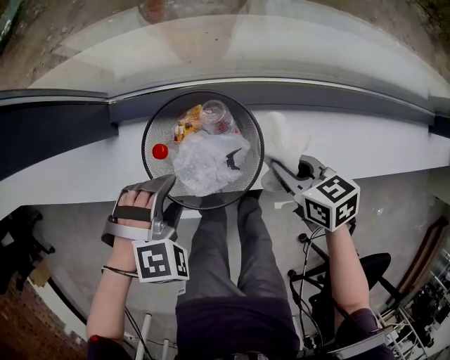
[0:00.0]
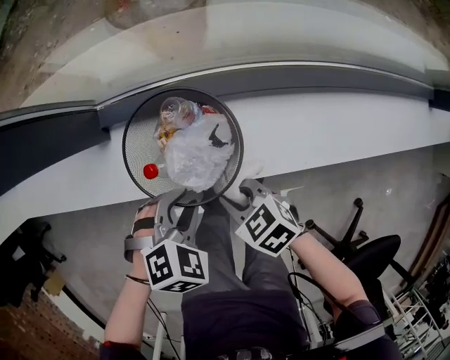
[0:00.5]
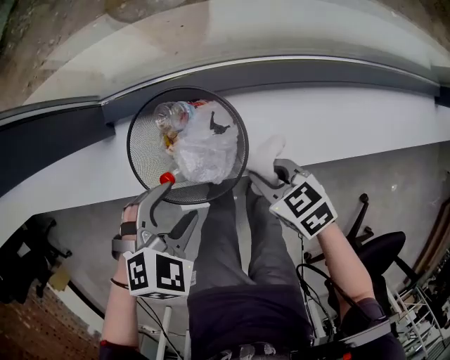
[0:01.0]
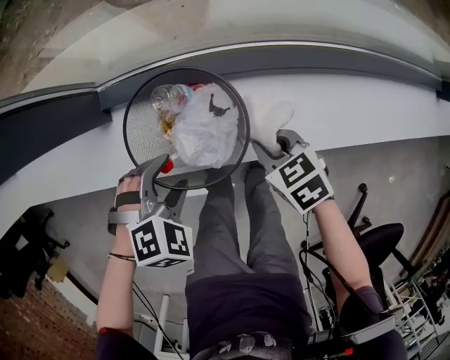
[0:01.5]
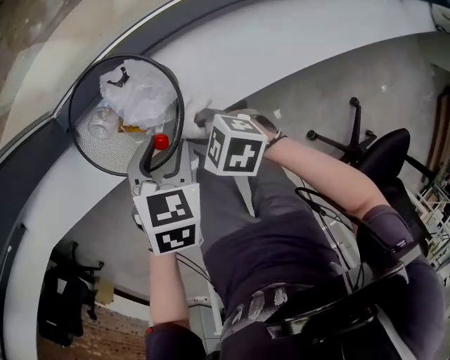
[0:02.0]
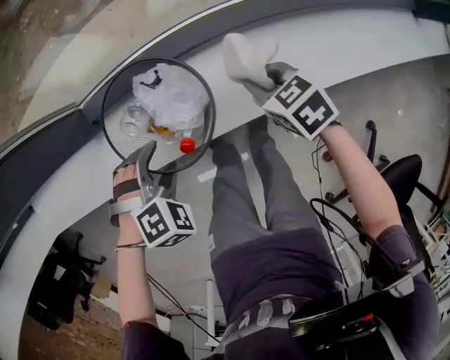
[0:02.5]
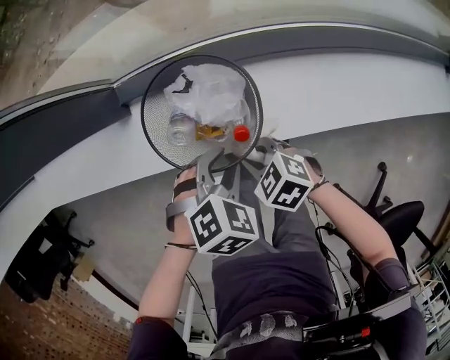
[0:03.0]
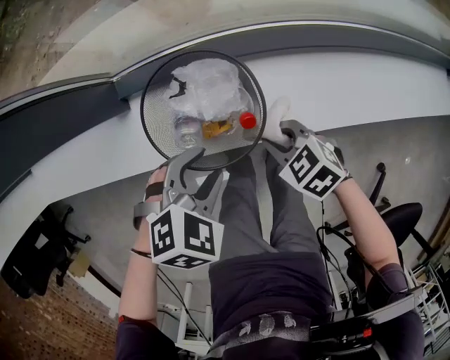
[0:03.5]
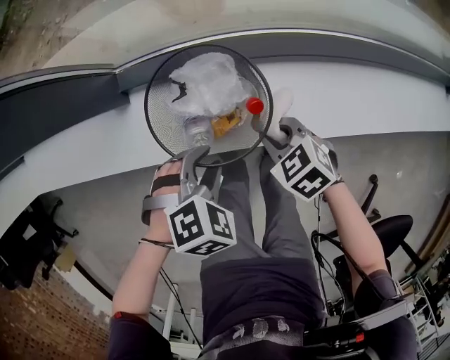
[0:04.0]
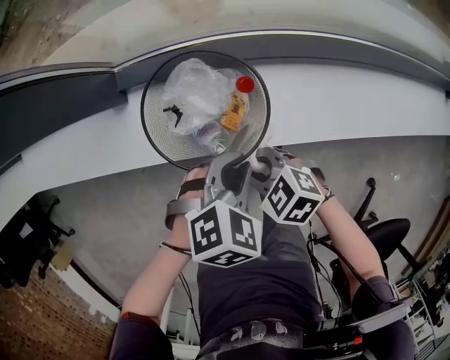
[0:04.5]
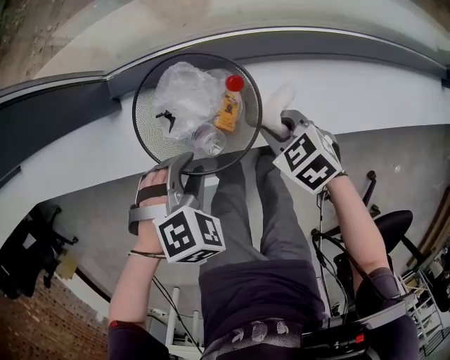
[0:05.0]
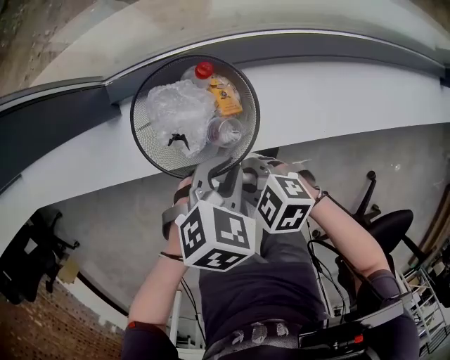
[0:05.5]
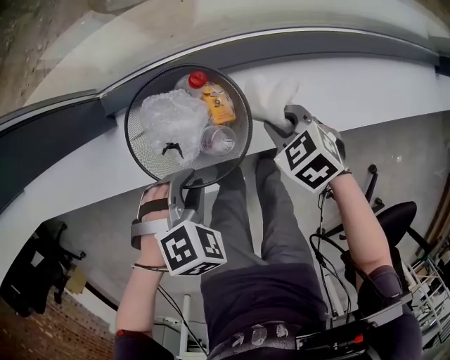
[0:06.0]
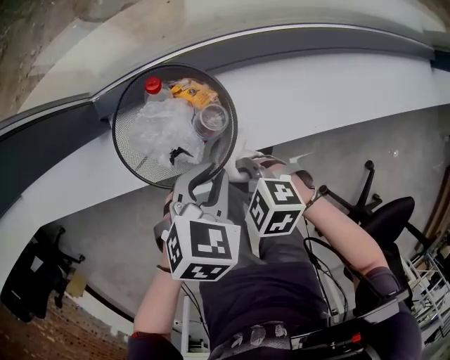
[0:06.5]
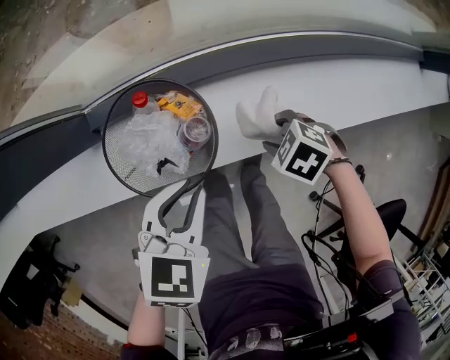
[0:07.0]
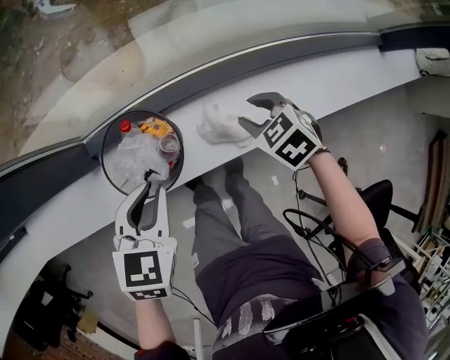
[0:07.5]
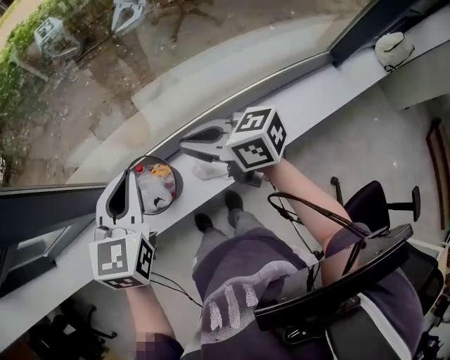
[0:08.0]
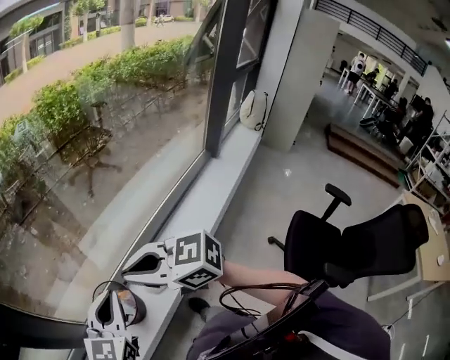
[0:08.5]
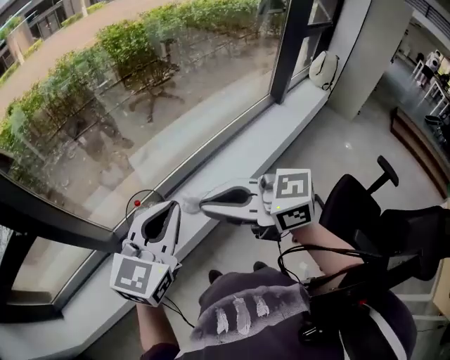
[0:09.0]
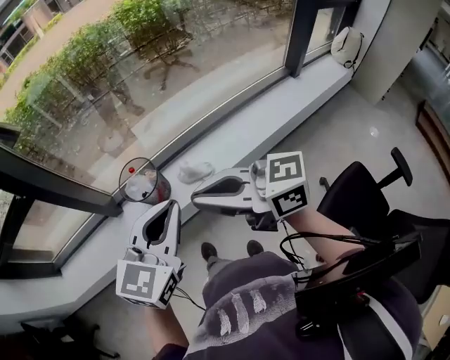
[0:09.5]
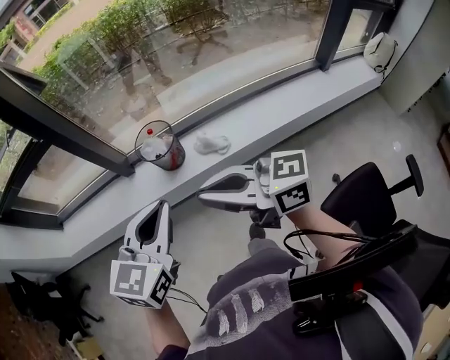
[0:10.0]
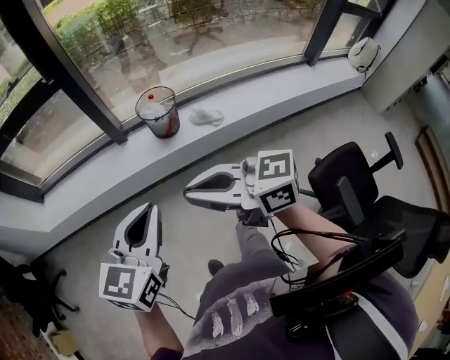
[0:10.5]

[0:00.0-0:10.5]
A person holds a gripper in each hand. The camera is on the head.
0:00.0 to 0:02.0: The right gripper changes place by approximately 15 cm, and rotates about 30 degrees. The left gripper shifts by roughly 5 cm, and twists approximately 50 degrees counterclockwise, seen from behind.
0:02.0 to 0:04.0: The left gripper turns by some 30 degrees.
0:04.0 to 0:06.5: The right gripper changes place by about 10 cm. The left gripper ends up some 5 cm from where it was, and swivels about 30 degrees.
0:06.5 to 0:08.5: Both grippers travel together upward, approximately 40 cm. The left gripper tilts its fingers some 50 degrees upward. The right gripper angles its fingers upward, by some 40 degrees, and opens, then closes again.
0:08.5 to 0:10.5: Both grippers are carried roughly 40 cm. The right gripper turns by about 30 degrees.

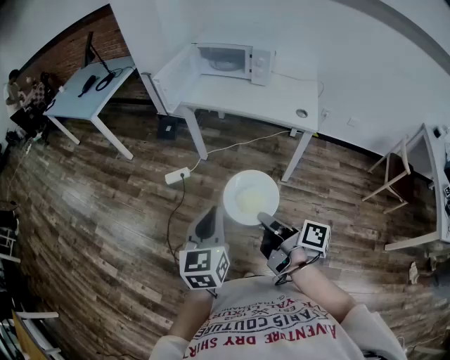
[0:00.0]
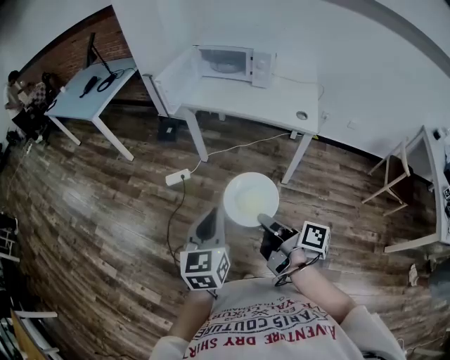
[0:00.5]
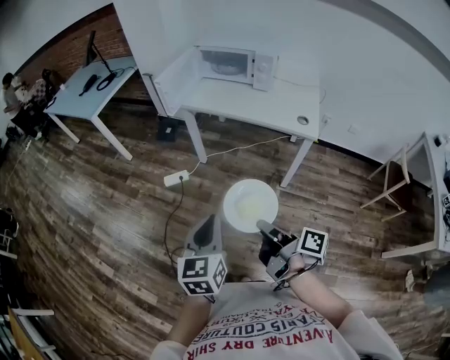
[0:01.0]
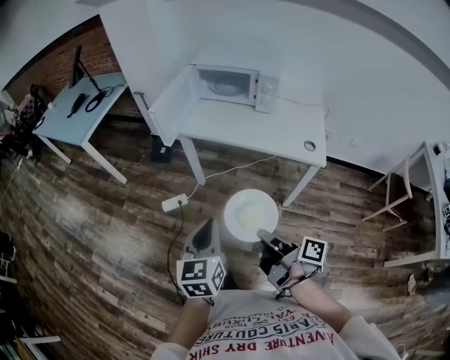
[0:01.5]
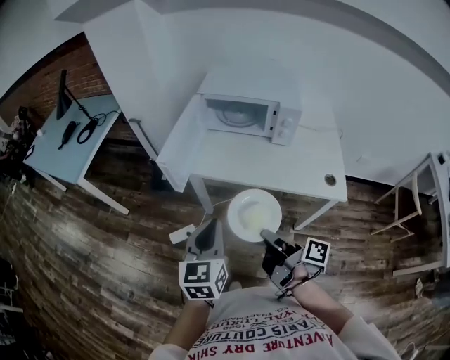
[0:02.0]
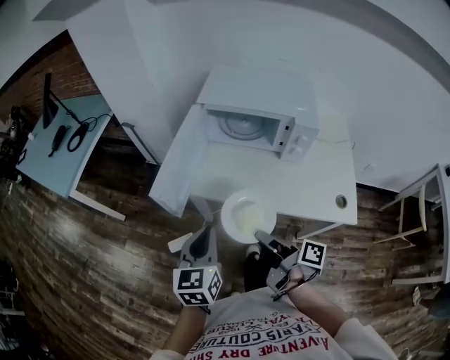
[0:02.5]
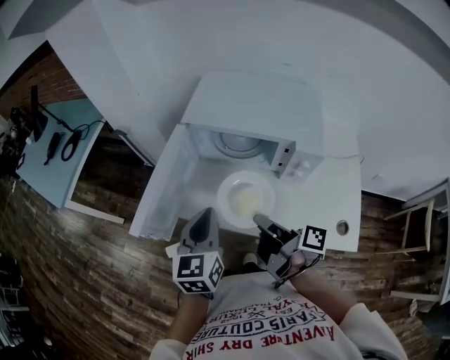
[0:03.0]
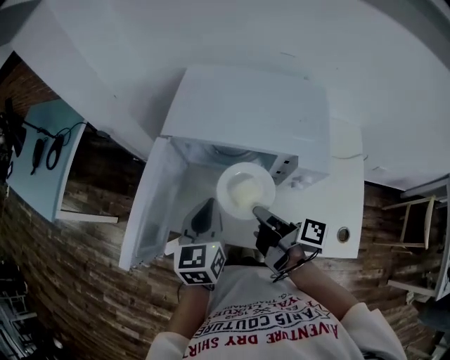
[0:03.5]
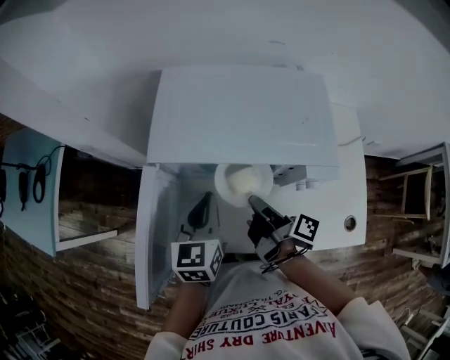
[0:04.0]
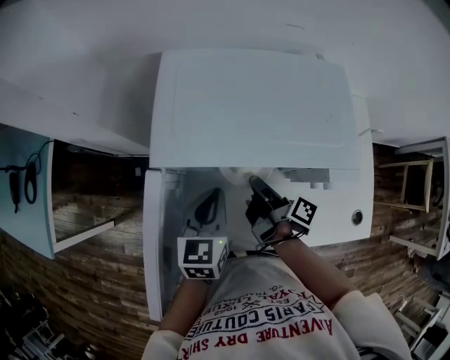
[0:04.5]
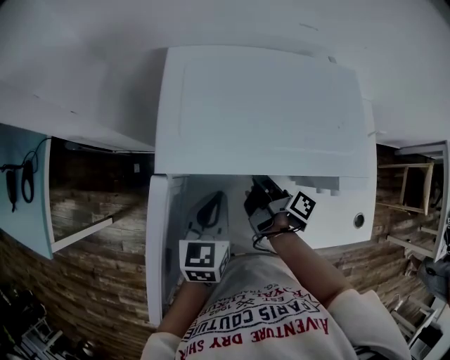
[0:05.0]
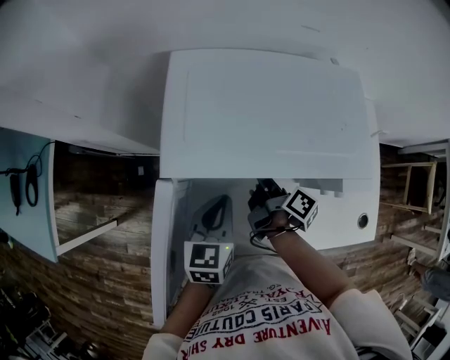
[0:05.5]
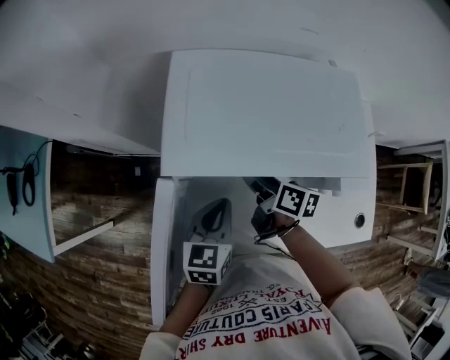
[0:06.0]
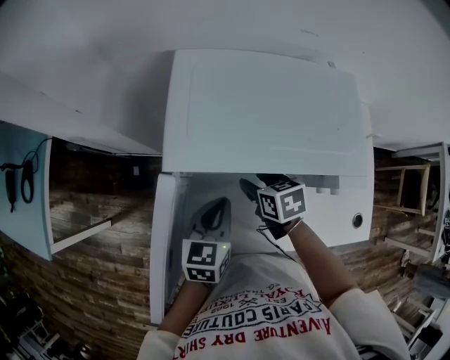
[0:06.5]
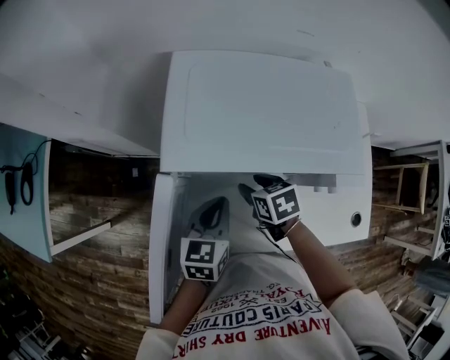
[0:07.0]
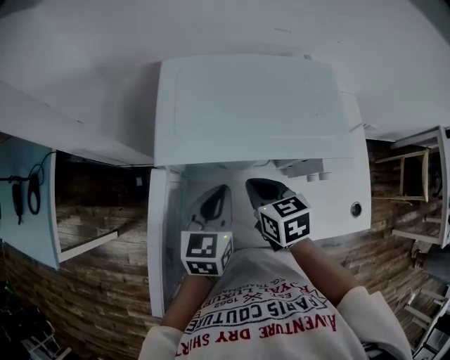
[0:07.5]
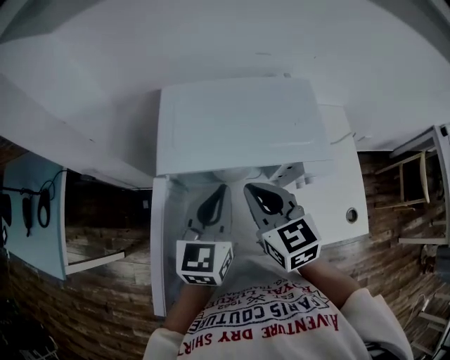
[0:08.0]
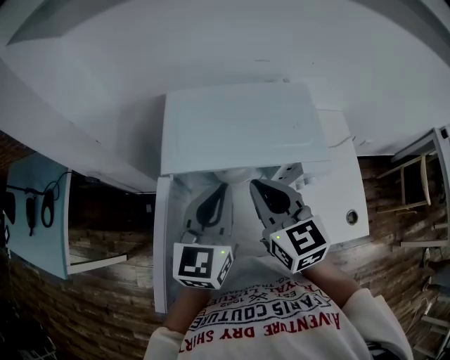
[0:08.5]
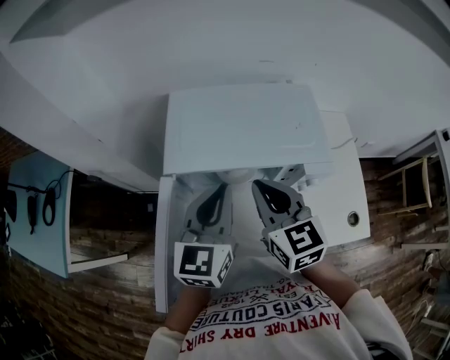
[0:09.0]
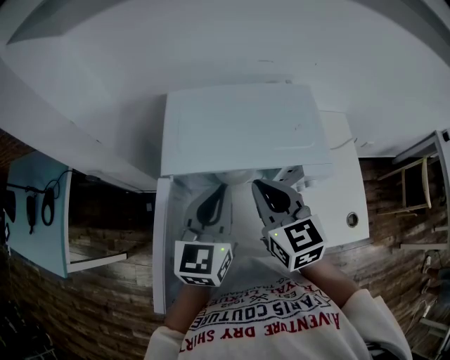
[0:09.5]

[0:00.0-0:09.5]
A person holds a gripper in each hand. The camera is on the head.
0:00.0 to 0:02.0: The left gripper shifts by approximately 40 cm.
0:02.0 to 0:04.0: The left gripper moves approximately 50 cm.
0:04.0 to 0:05.5: The left gripper is displaced downward by approximately 5 cm.
0:07.5 to 0:09.5: The left gripper heads upward, covering some 15 cm.

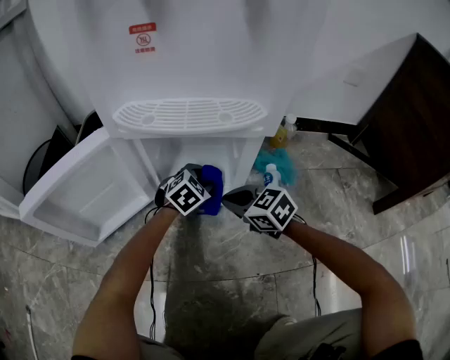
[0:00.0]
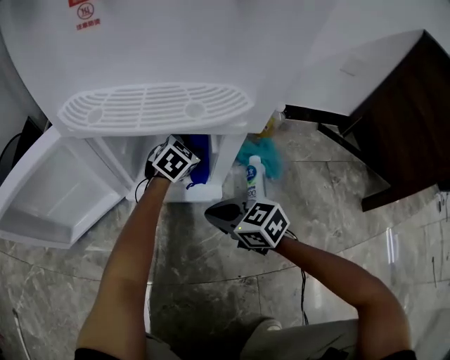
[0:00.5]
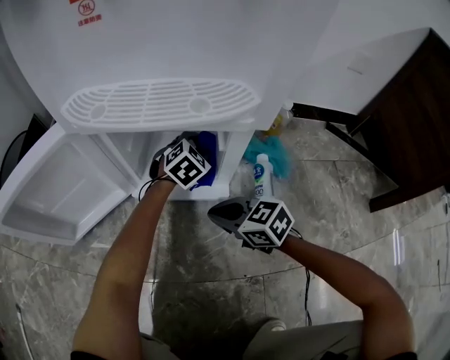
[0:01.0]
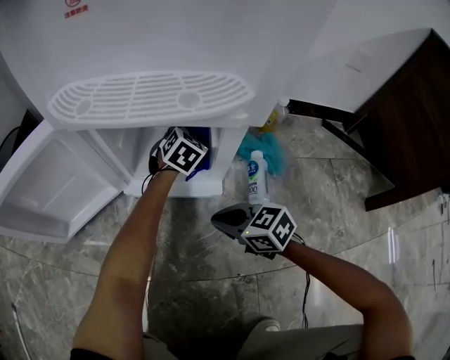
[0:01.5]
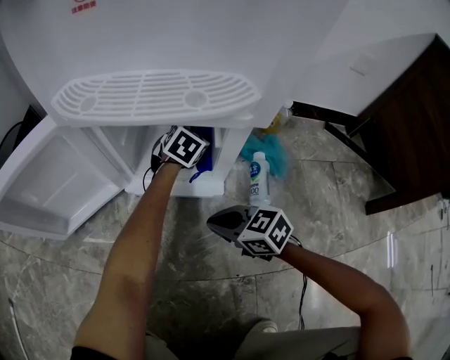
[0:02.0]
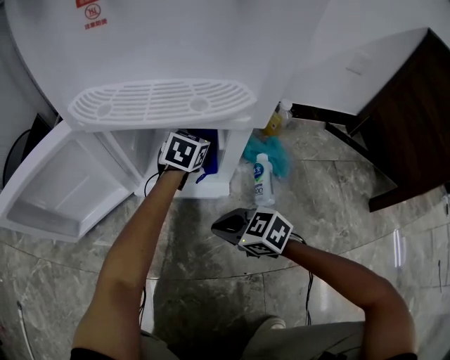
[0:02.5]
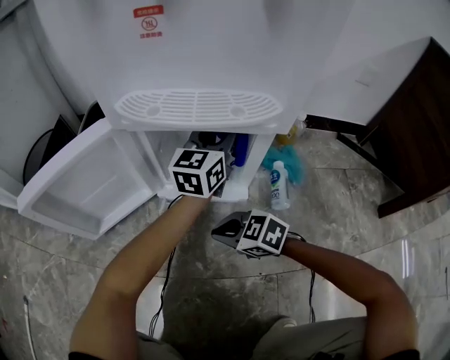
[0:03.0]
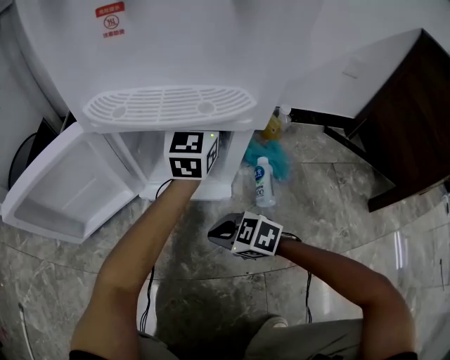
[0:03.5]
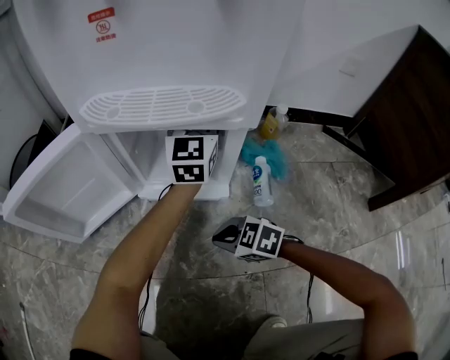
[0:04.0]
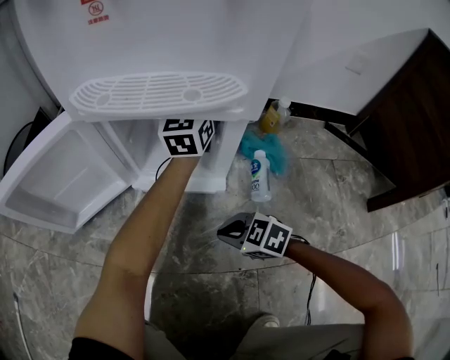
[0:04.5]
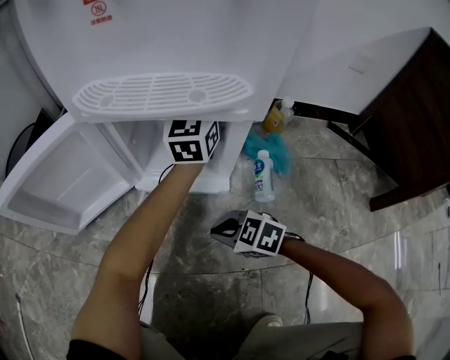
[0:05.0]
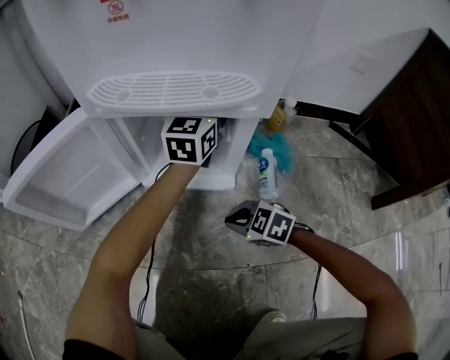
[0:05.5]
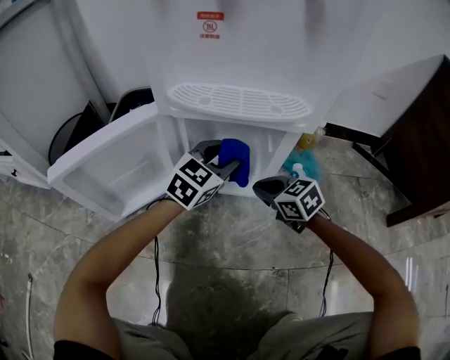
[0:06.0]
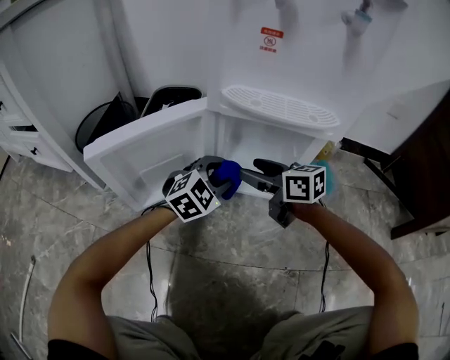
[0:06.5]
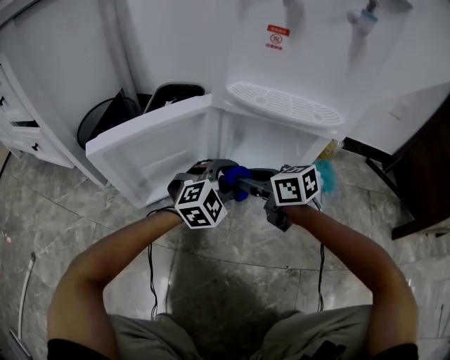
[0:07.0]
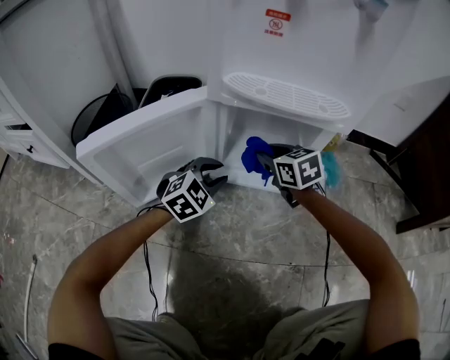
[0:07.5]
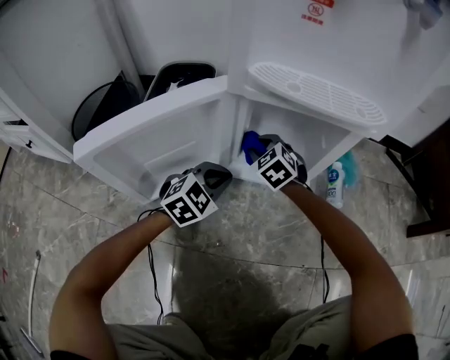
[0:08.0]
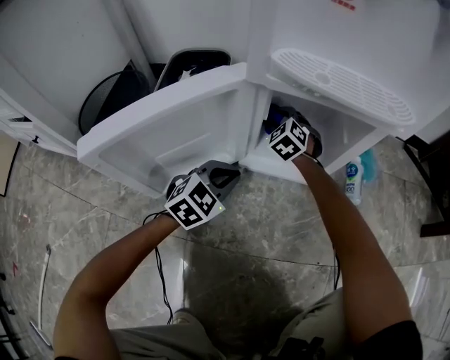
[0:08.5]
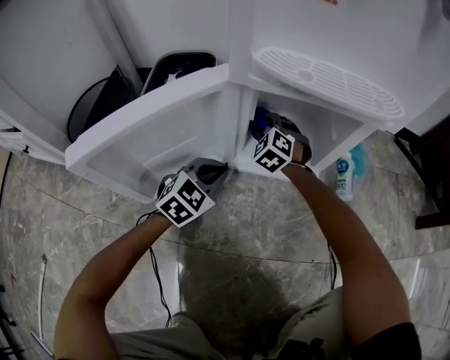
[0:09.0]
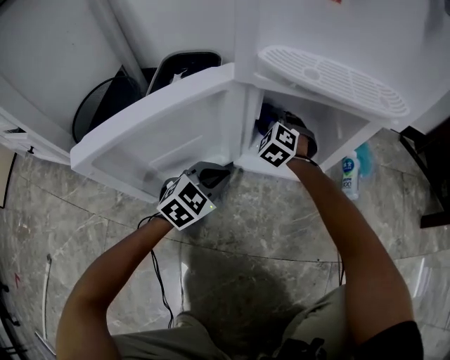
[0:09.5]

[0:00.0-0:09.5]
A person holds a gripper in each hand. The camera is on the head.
0:00.0 to 0:02.0: The left gripper goes about 15 cm forward and to the right. The right gripper shifts roughly 5 cm backward.
0:02.0 to 0:04.0: The left gripper heads upward, covering about 25 cm, and points its fingers approximately 50 degrees further upward, while the right gripper ends up about 5 cm from where it was, and turns by approximately 20 degrees.
0:04.0 to 0:05.5: There are only small adjustments of the grippers.
0:05.5 to 0:07.5: The right gripper moves forward and upward, approximately 20 cm, rotates roughly 40 degrees, and opens, then closes once more. Meanwhile the left gripper is displaced to the left, backward and downward by some 30 cm, and tips its fingers downward by some 40 degrees.
0:07.5 to 0:09.5: The left gripper goes approximately 5 cm to the left, and closes. Meanwhile the right gripper travels downward, forward and to the left by some 15 cm, and rolls counterclockwise, seen from behind, by about 50 degrees.
